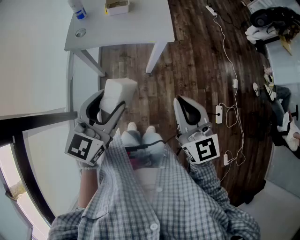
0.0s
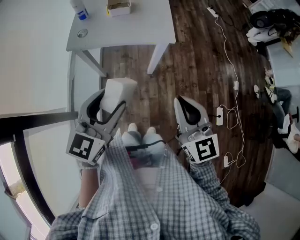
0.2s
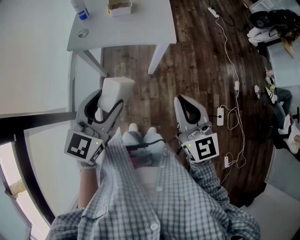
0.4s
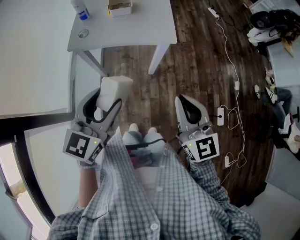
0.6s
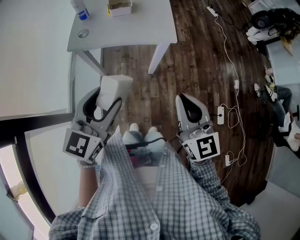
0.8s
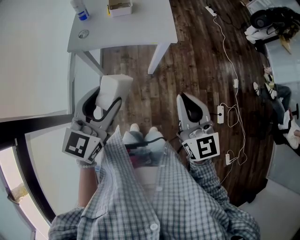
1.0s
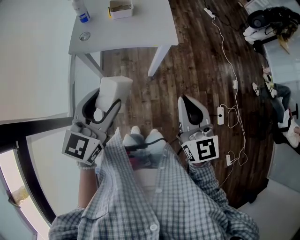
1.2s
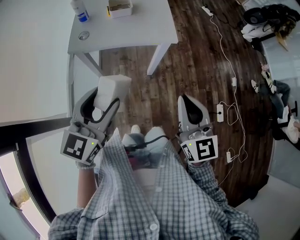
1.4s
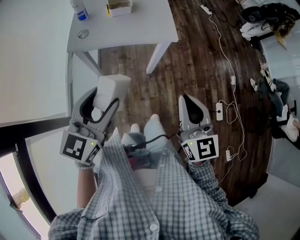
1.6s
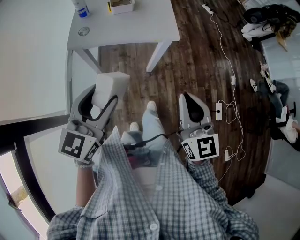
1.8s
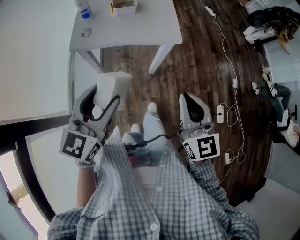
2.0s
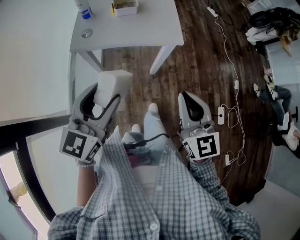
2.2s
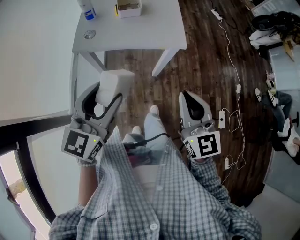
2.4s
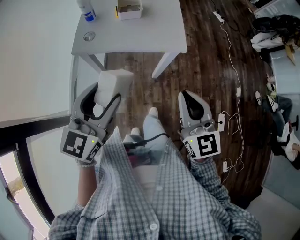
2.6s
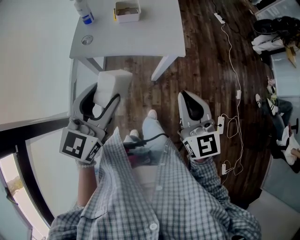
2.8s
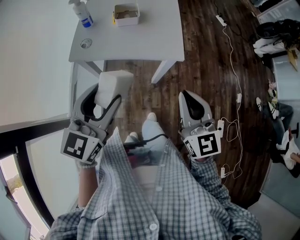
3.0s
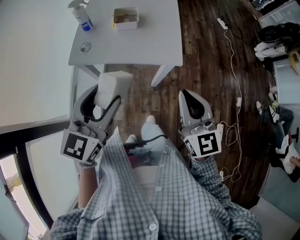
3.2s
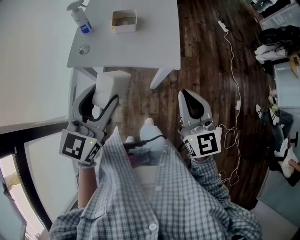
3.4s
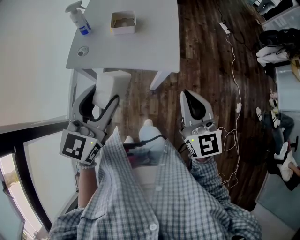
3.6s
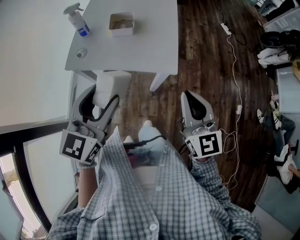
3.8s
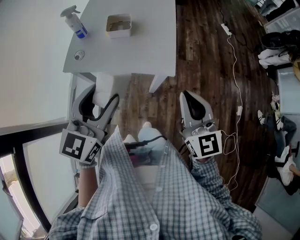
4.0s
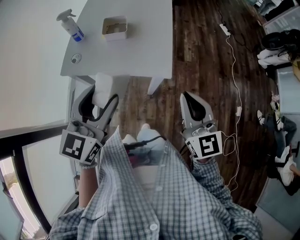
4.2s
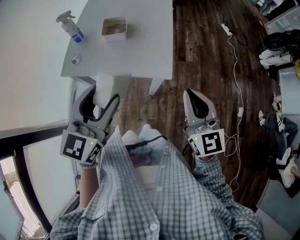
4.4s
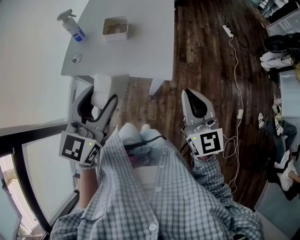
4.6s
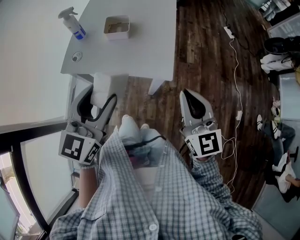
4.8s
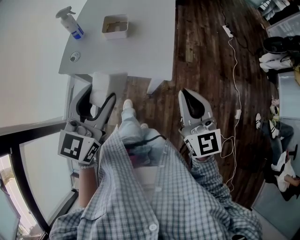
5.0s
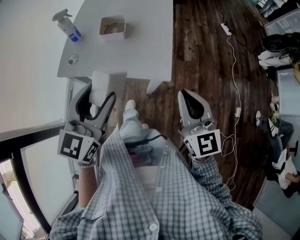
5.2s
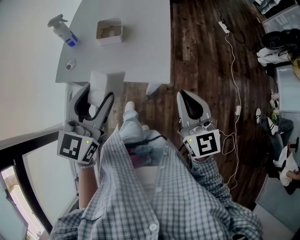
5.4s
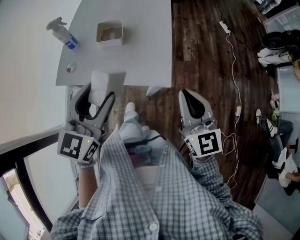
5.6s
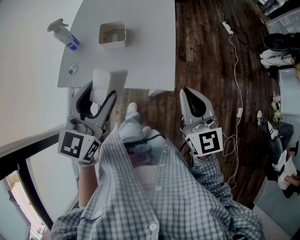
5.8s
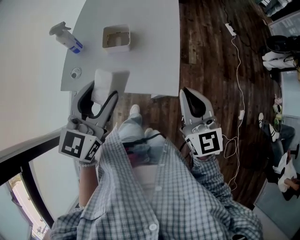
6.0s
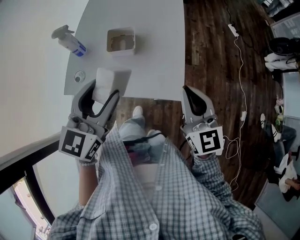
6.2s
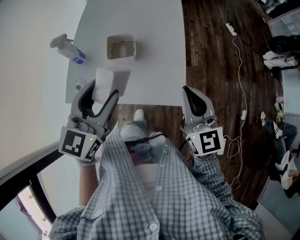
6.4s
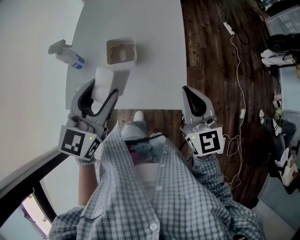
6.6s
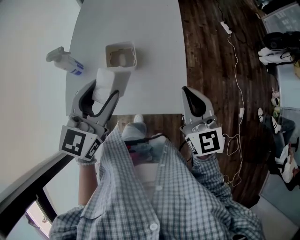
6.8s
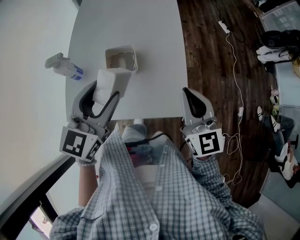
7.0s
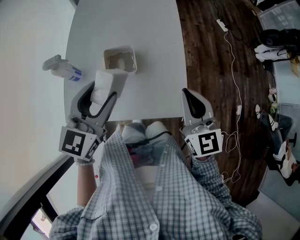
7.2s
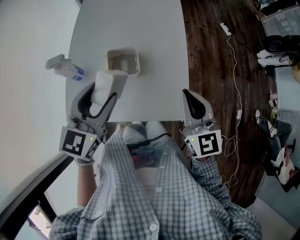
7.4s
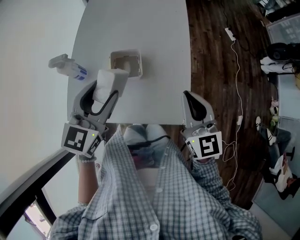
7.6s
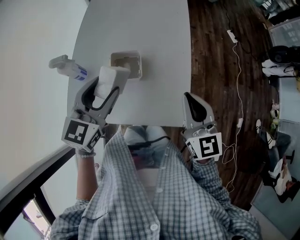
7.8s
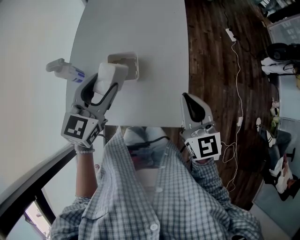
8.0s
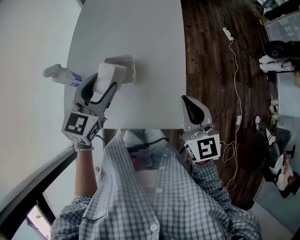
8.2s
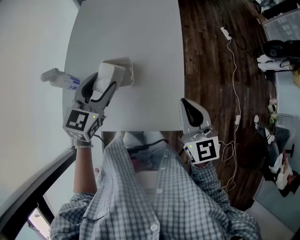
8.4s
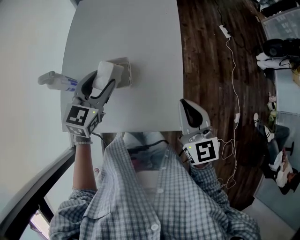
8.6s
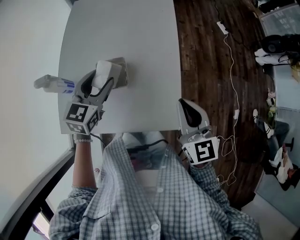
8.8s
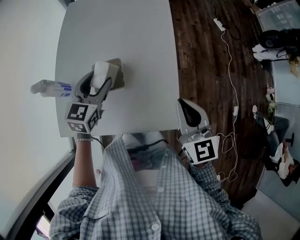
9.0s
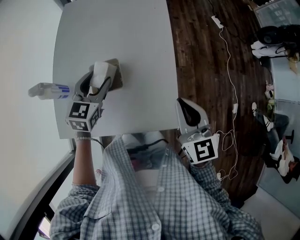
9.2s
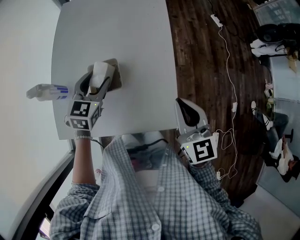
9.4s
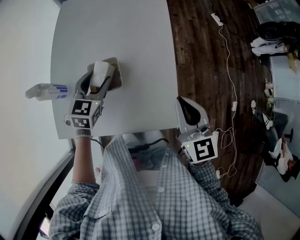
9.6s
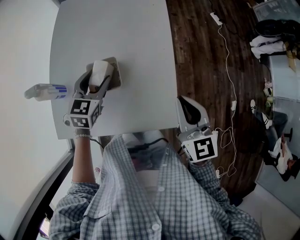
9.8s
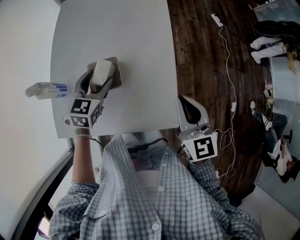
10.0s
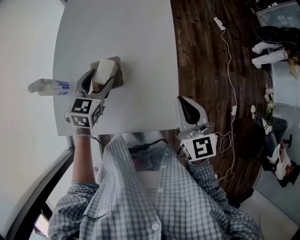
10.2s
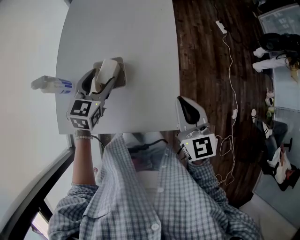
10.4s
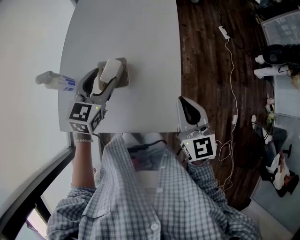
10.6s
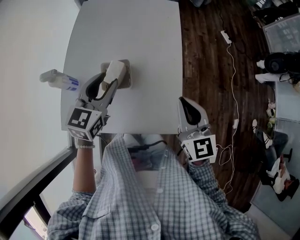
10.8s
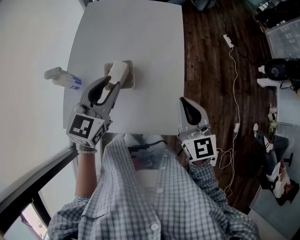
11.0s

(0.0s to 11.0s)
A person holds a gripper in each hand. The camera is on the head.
0.0s - 1.6s: The left gripper shifts some 5 cm to the left.
1.6s - 3.2s: Both grippers move forward, about 15 cm.
3.2s - 4.8s: Both grippers move forward and to the right, about 10 cm.
4.8s - 6.2s: Both grippers move forward, approximately 15 cm.
6.2s - 7.8s: The left gripper heads forward and to the left, covering some 15 cm; the right gripper is displaced forward by about 10 cm.
7.8s - 9.4s: The left gripper moves downward and forward, about 15 cm.
9.4s - 11.0s: The left gripper heads upward and backward, covering about 15 cm, and closes.

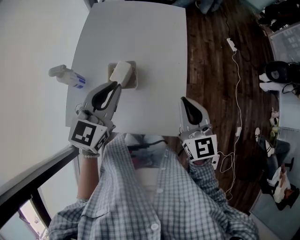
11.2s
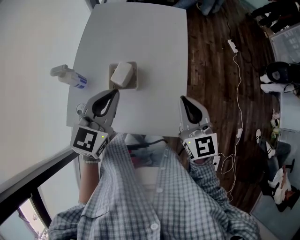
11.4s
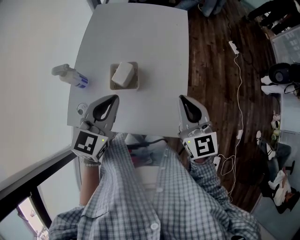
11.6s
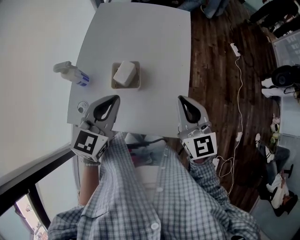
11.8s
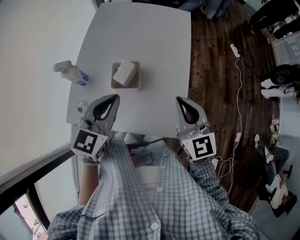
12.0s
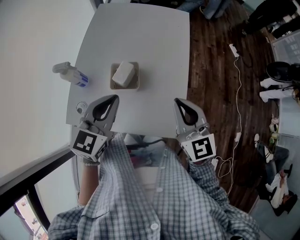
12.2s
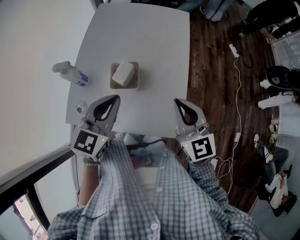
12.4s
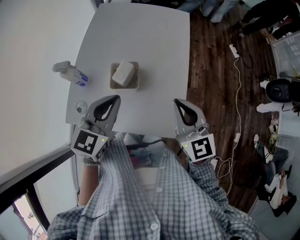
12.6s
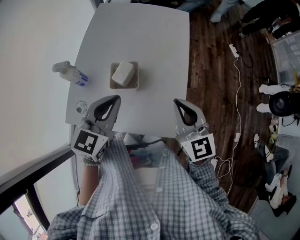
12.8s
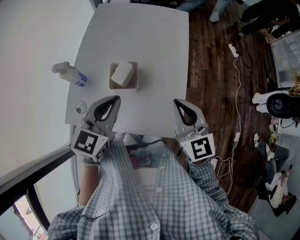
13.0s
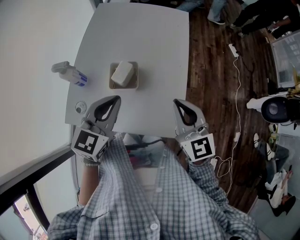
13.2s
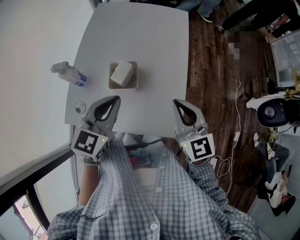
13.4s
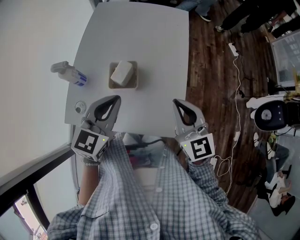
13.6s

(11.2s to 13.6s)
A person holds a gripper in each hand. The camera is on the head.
11.2s - 12.4s: The grippers stay close to where they were, moving slightly.
12.4s - 13.6s: Neither gripper changes place.

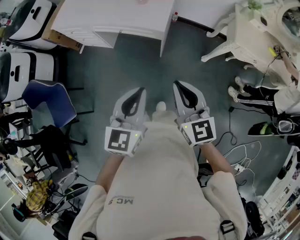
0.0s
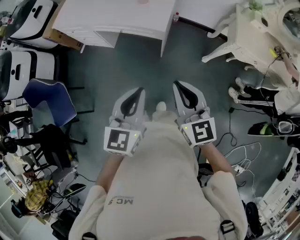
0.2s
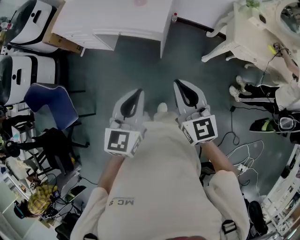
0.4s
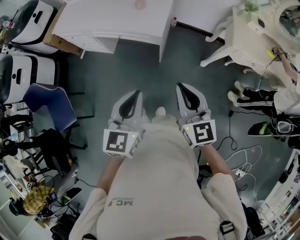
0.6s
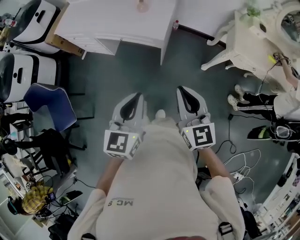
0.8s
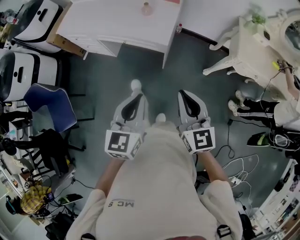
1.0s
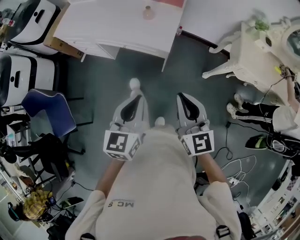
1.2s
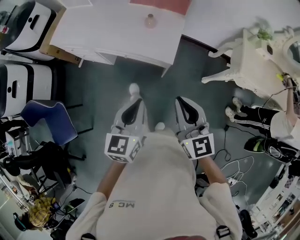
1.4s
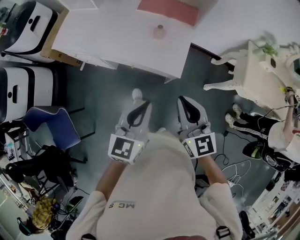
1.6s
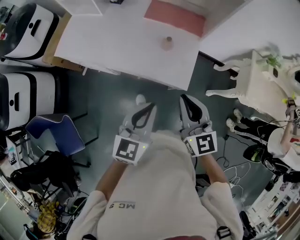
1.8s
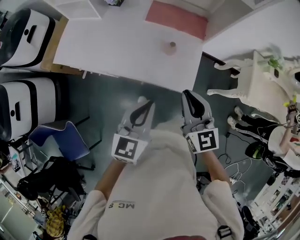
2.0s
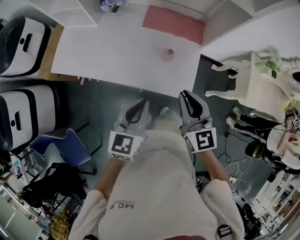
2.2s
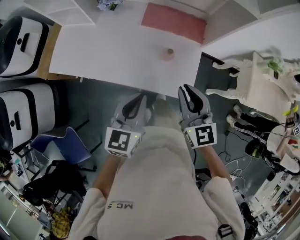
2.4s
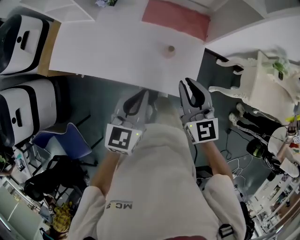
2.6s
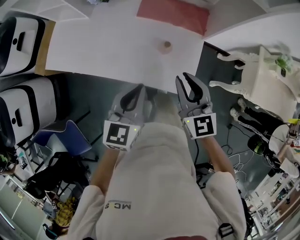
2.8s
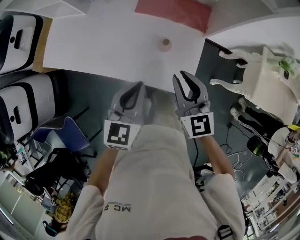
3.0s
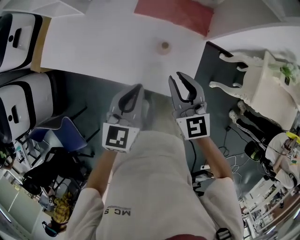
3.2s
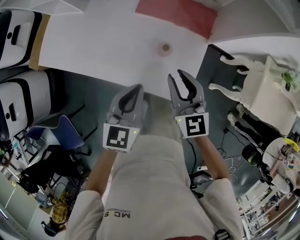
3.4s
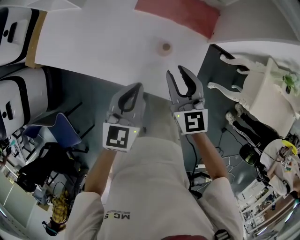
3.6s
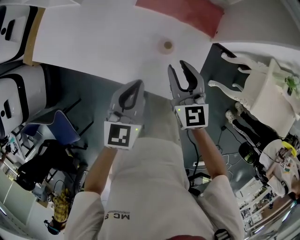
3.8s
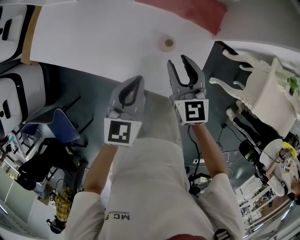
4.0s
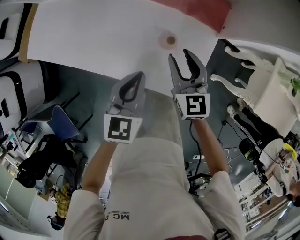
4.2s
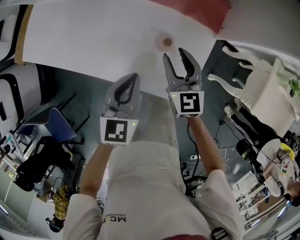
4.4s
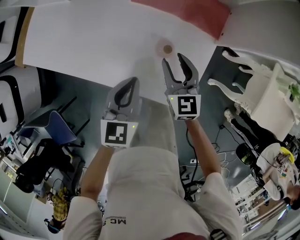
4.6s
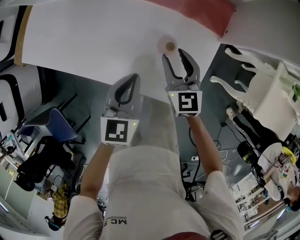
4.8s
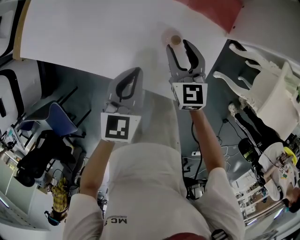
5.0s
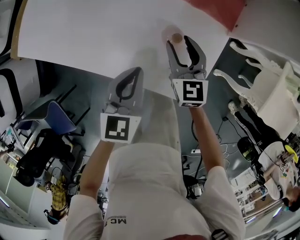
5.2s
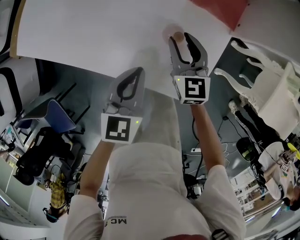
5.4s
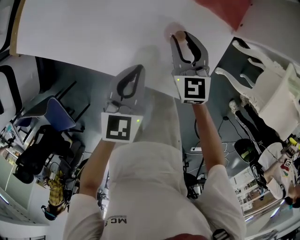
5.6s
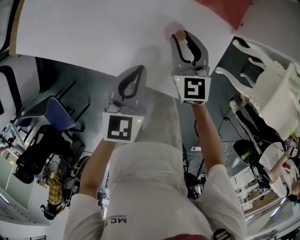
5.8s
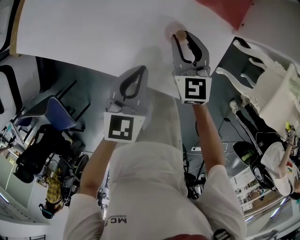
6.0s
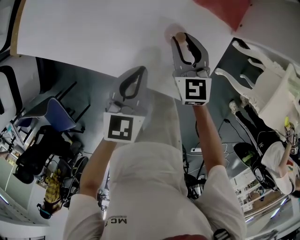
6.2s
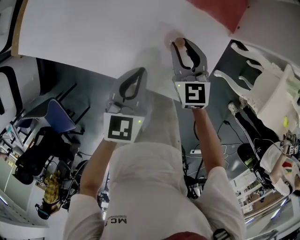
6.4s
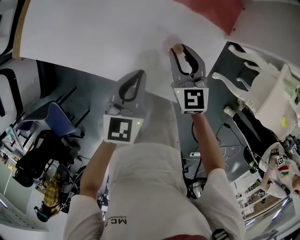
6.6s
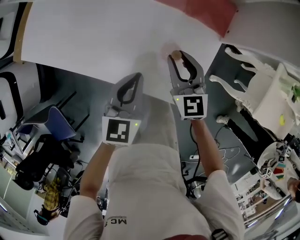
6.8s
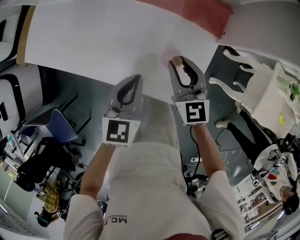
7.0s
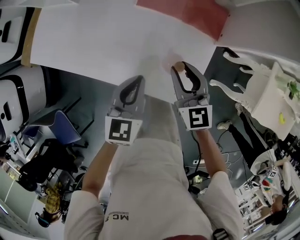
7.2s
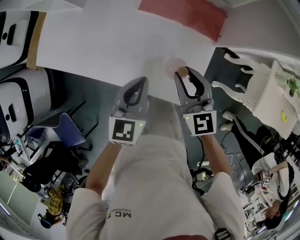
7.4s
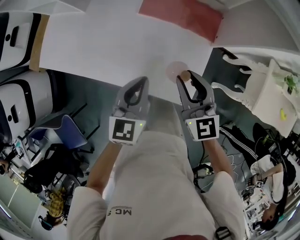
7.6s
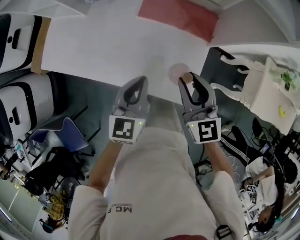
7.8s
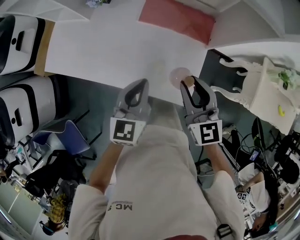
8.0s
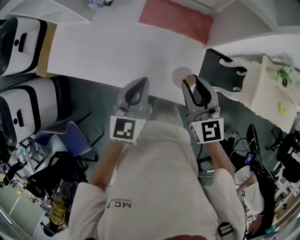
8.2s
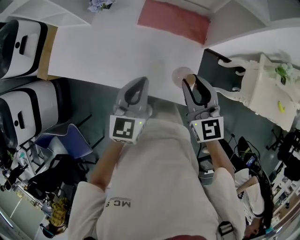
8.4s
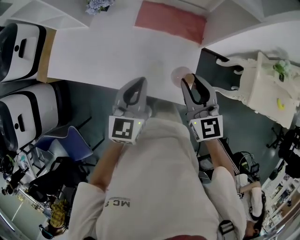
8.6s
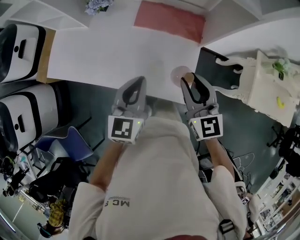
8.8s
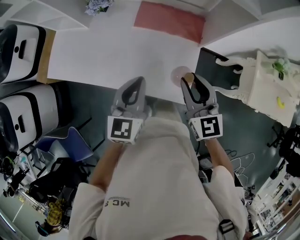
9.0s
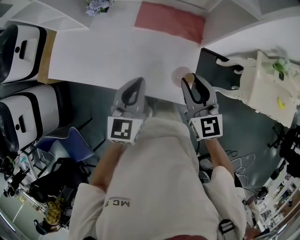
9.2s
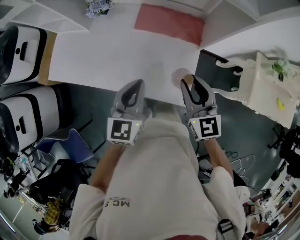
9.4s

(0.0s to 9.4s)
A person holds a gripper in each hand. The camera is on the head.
0.0s - 1.6s: The two grippers go roughly 30 cm forward and to the left.
1.6s - 3.2s: Both grippers move forward, roughly 30 cm.
3.2s - 4.8s: Both grippers travel together downward and forward, about 20 cm. The right gripper opens up.
4.8s - 6.2s: The grippers move only a little.
6.2s - 7.8s: Both grippers travel together upward, about 20 cm.
7.8s - 9.4s: The right gripper changes place by approximately 5 cm. Meanwhile the left gripper shifts about 5 cm upward.

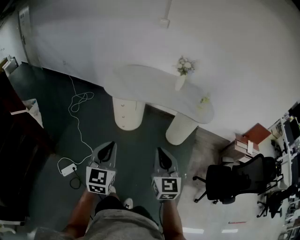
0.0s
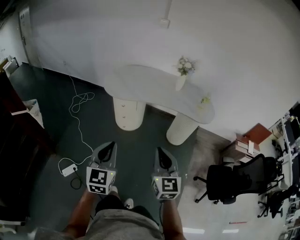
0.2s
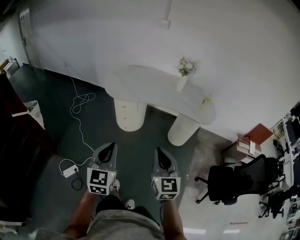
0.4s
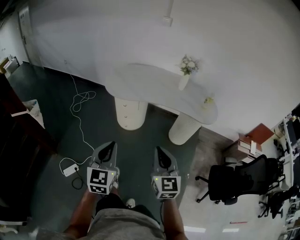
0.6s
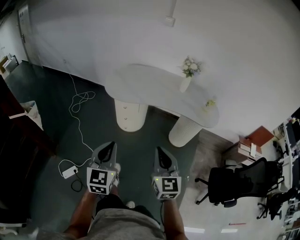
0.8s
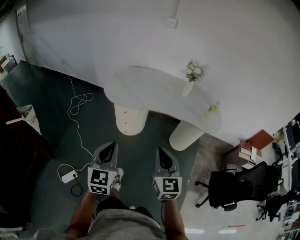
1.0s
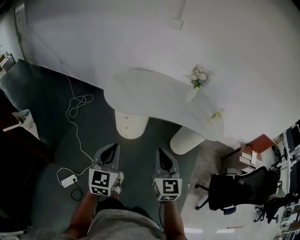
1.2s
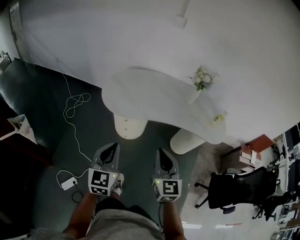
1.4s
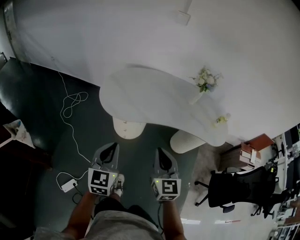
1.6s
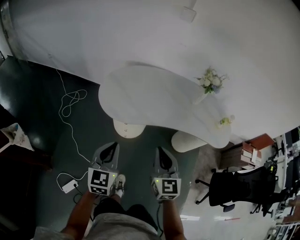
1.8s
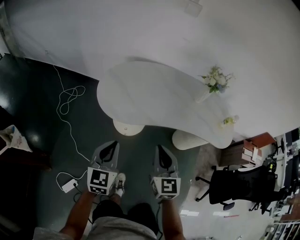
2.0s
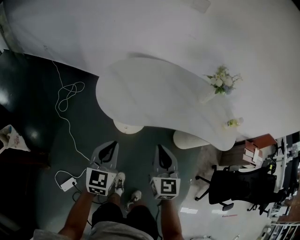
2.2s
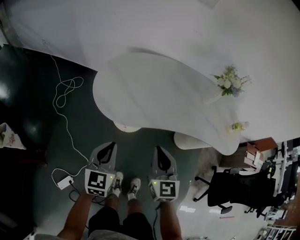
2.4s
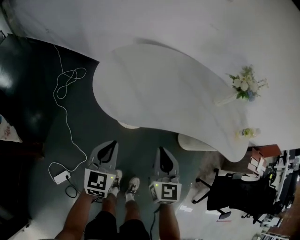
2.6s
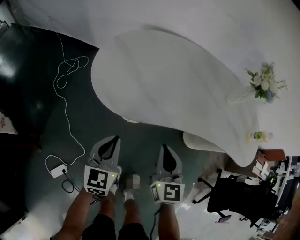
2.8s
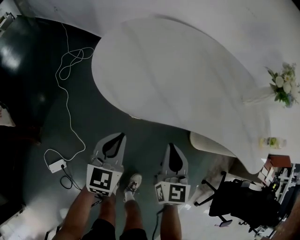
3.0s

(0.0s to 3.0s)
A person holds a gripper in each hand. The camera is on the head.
0.0s - 1.6s: The two grippers go about 30 cm forward.
1.6s - 3.0s: The two grippers go about 35 cm downward and forward.
